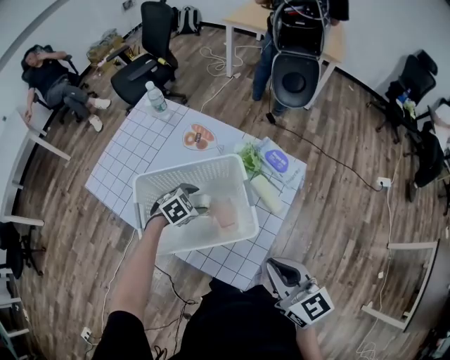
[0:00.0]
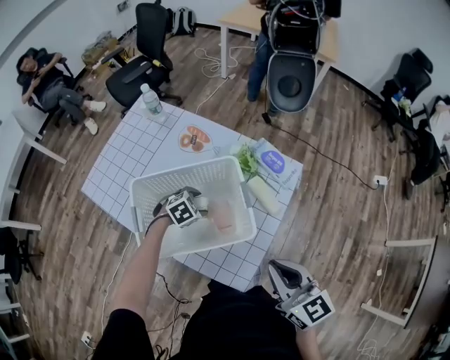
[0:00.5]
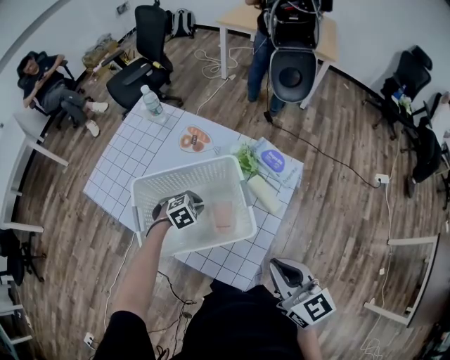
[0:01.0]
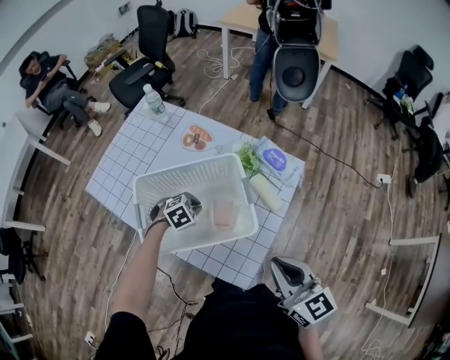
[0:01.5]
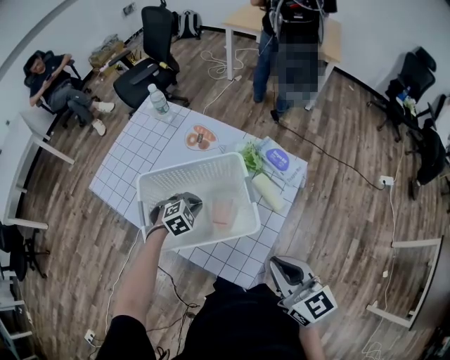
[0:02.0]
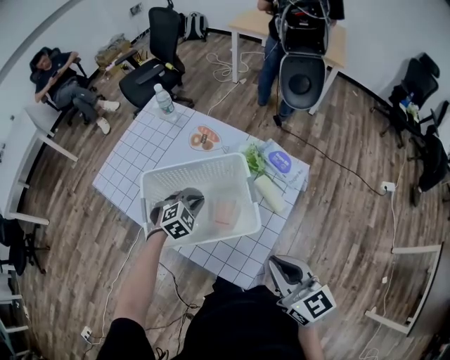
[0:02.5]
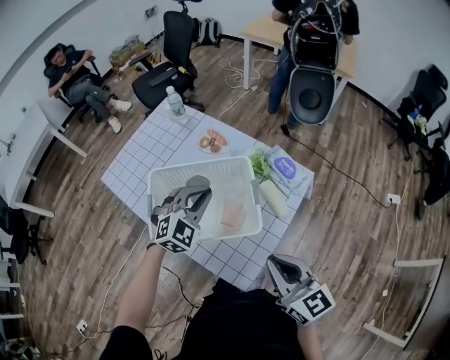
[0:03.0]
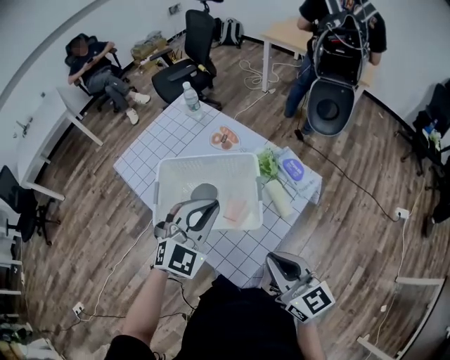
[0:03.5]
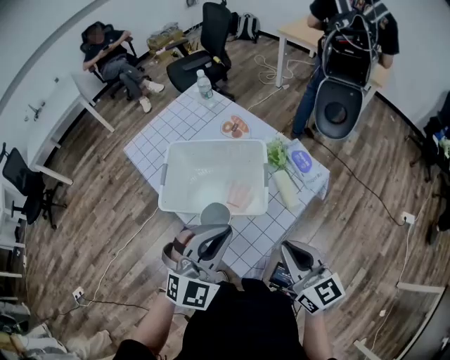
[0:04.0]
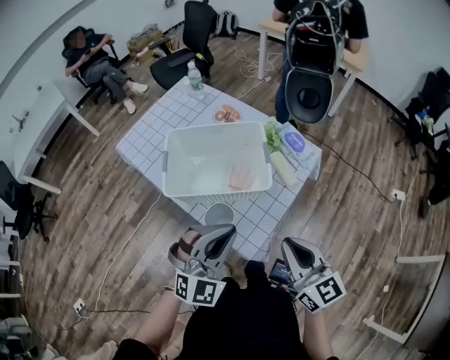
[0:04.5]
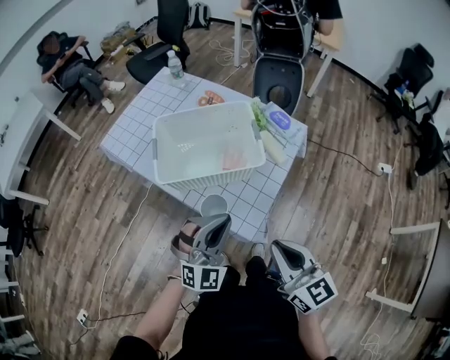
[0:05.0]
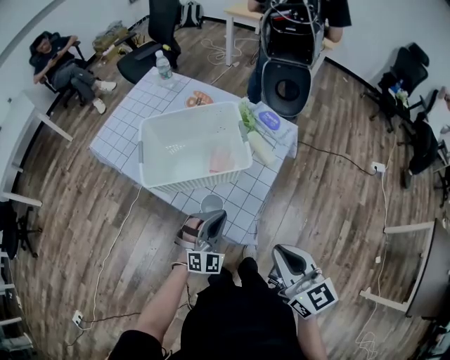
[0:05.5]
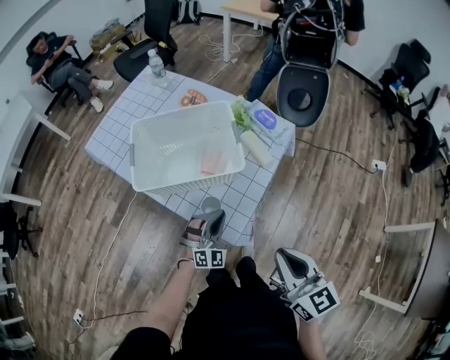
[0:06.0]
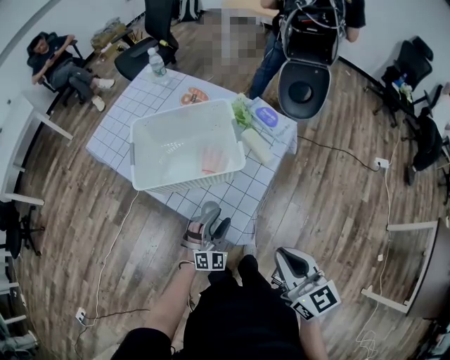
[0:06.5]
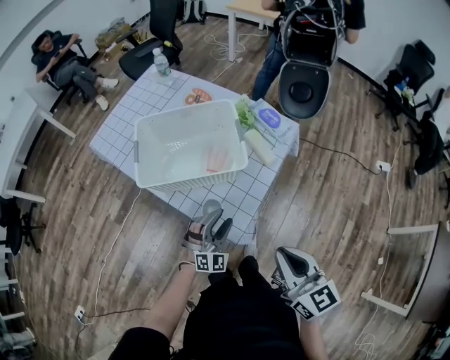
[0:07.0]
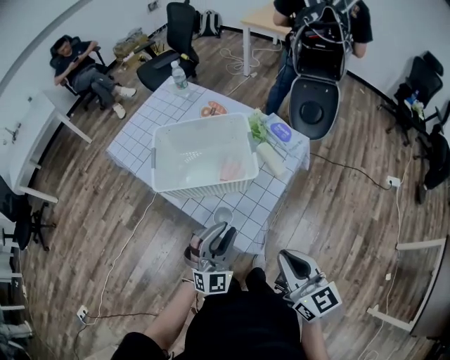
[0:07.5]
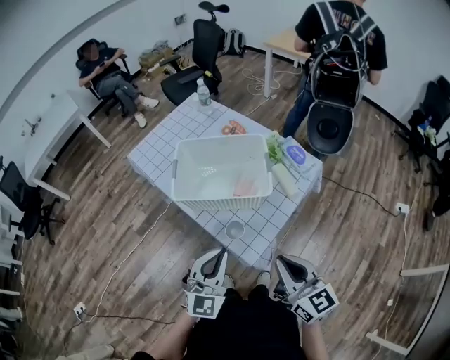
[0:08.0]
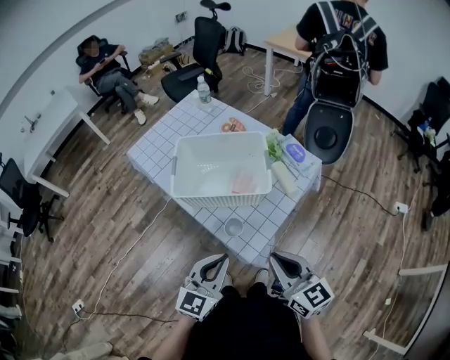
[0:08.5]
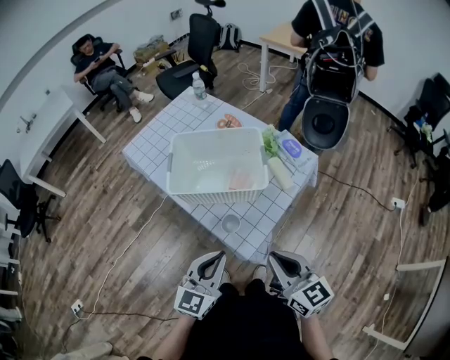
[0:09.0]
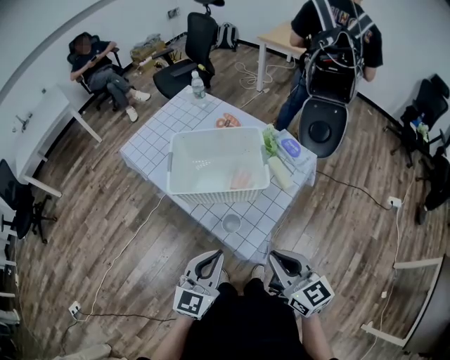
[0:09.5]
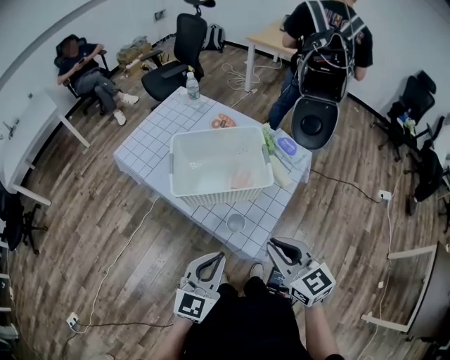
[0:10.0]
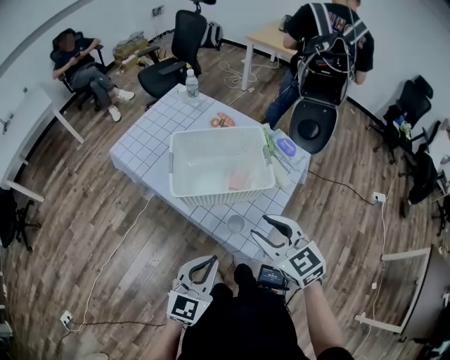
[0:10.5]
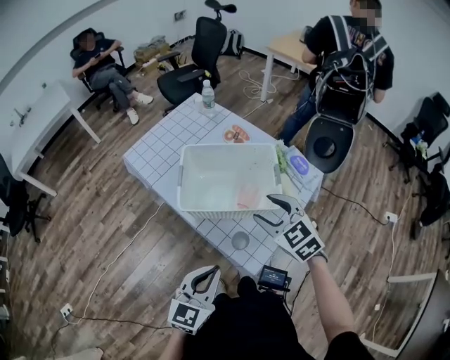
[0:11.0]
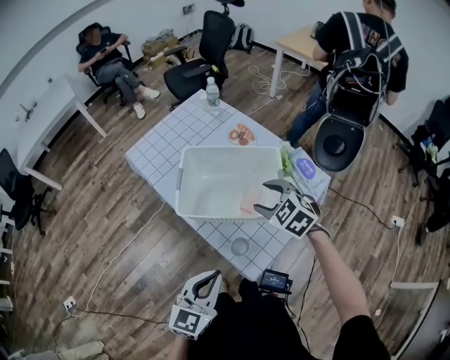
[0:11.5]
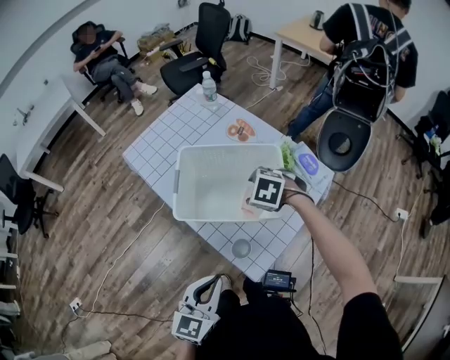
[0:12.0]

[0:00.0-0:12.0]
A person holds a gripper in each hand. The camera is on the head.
0:00.0 to 0:02.0: The left gripper closes its fingers.
0:02.0 to 0:04.0: The left gripper shifts roughly 35 cm upward and backward, and tips its fingers upward by approximately 40 degrees.
0:04.0 to 0:06.0: The left gripper is displaced downward by approximately 25 cm, while the right gripper travels backward by approximately 15 cm.
0:06.0 to 0:08.0: The left gripper goes approximately 20 cm upward, swivels approximately 30 degrees, and opens, then closes once more.
0:08.0 to 0:10.0: The left gripper changes place by approximately 5 cm, and swivels approximately 30 degrees, while the right gripper moves to the left, about 5 cm.
0:10.0 to 0:12.0: The left gripper changes place by approximately 5 cm. Meanwhile the right gripper heads forward and downward, covering roughly 30 cm, angles its fingers downward, by roughly 50 degrees, and opens its fingers.

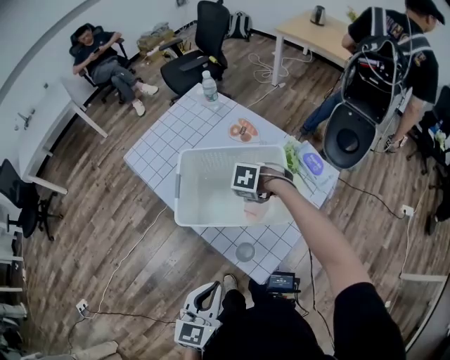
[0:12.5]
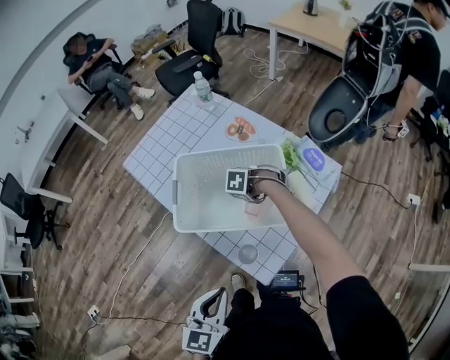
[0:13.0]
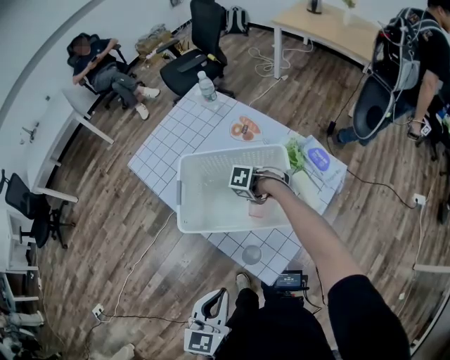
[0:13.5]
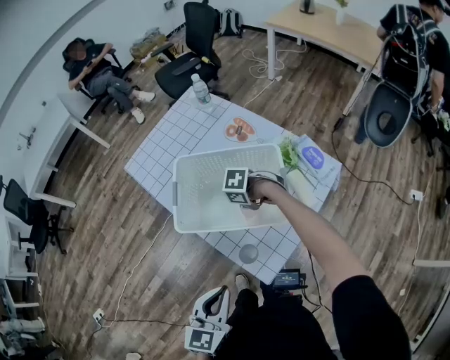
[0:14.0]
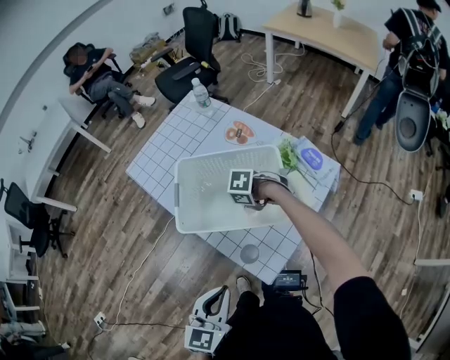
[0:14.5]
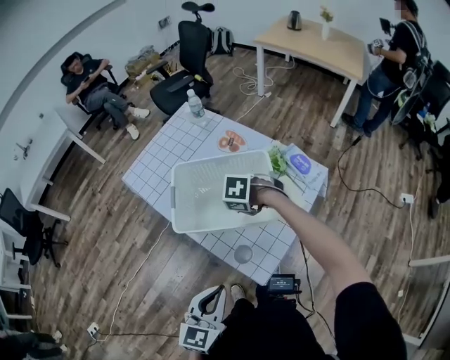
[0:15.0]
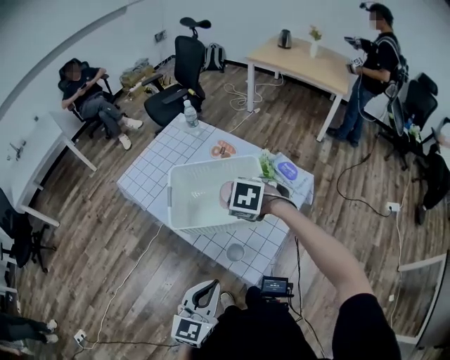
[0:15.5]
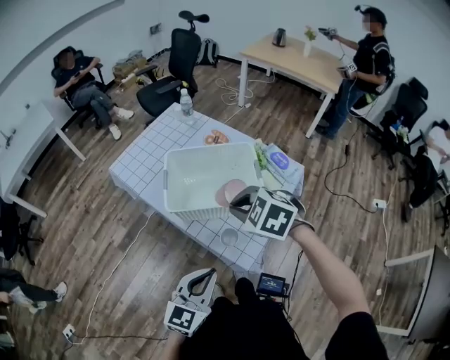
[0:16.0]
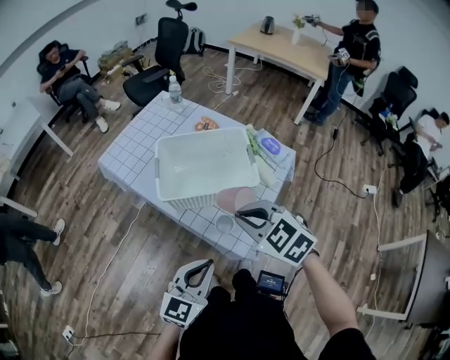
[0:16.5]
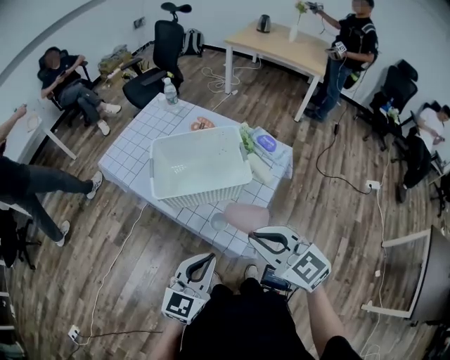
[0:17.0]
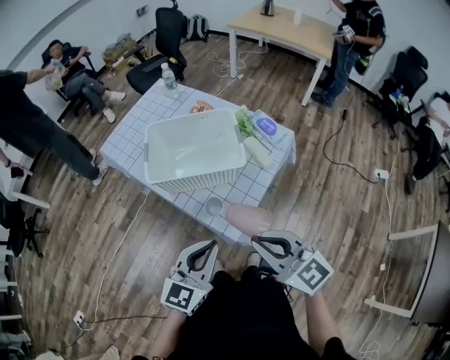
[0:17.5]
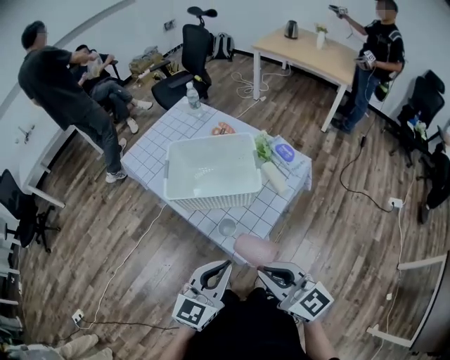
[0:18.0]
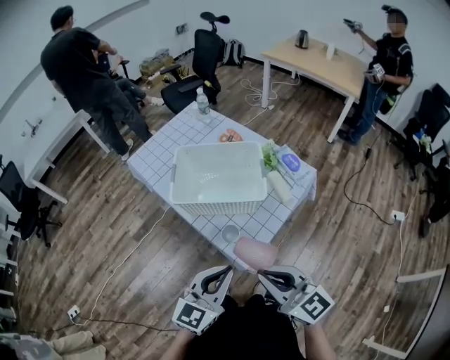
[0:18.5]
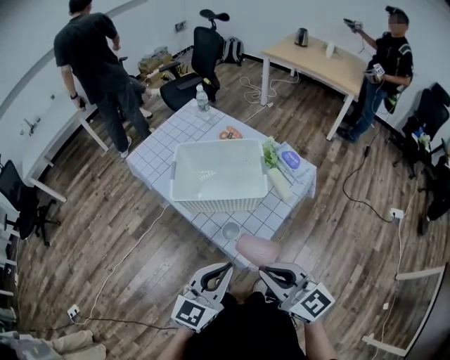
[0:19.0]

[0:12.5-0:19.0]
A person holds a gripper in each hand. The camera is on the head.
0:12.5 to 0:14.5: The right gripper closes up.
0:14.5 to 0:17.0: The left gripper moves roughly 5 cm, and turns by about 20 degrees; the right gripper ends up about 35 cm from where it was, and points its fingers some 50 degrees further upward.
0:17.0 to 0:19.0: The right gripper moves backward, about 5 cm. Meanwhile the left gripper changes place by roughly 5 cm.

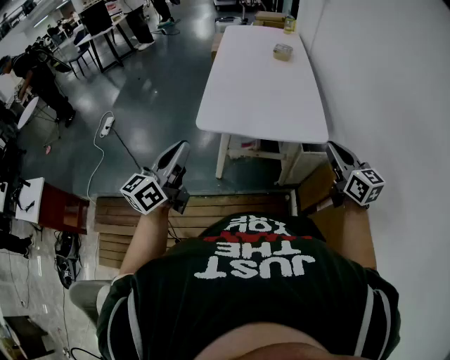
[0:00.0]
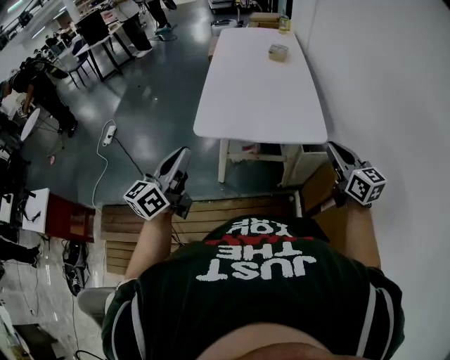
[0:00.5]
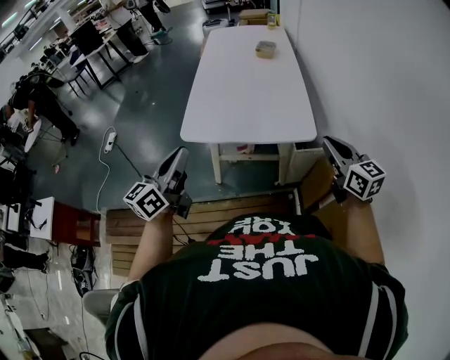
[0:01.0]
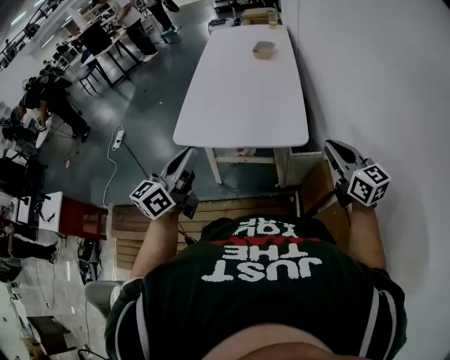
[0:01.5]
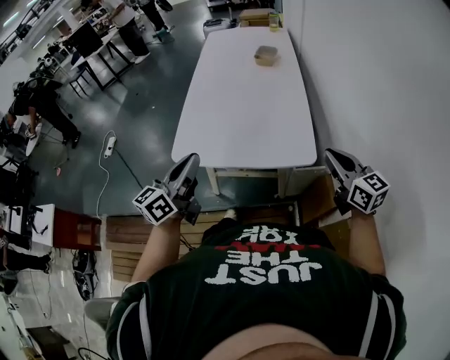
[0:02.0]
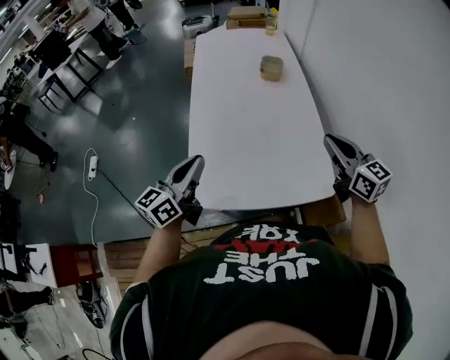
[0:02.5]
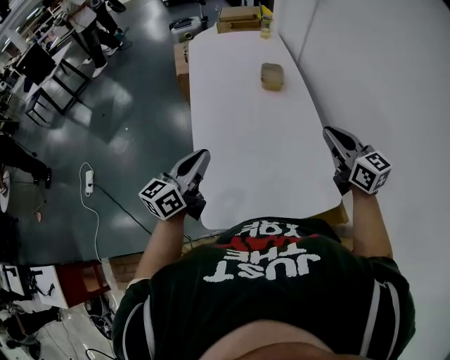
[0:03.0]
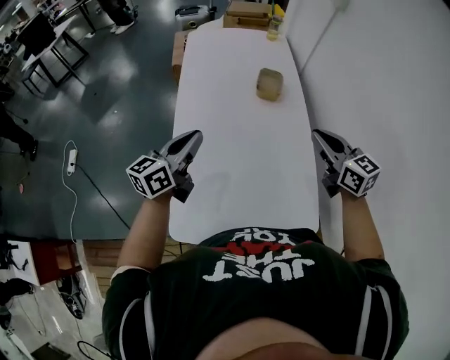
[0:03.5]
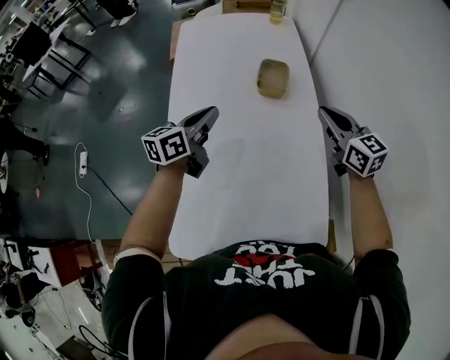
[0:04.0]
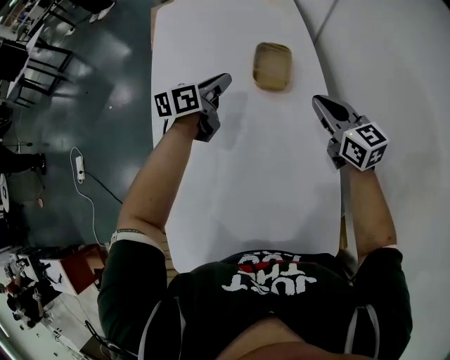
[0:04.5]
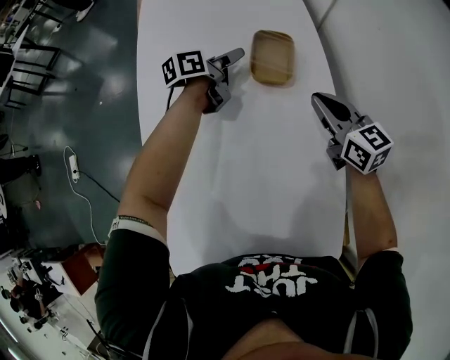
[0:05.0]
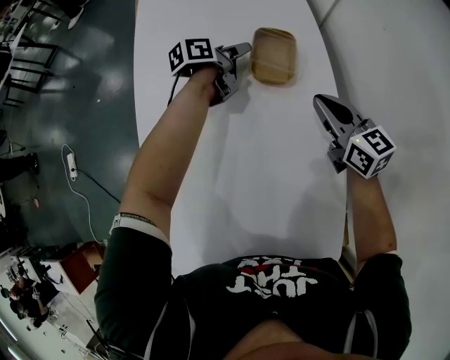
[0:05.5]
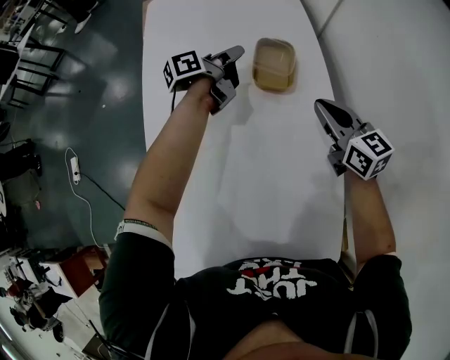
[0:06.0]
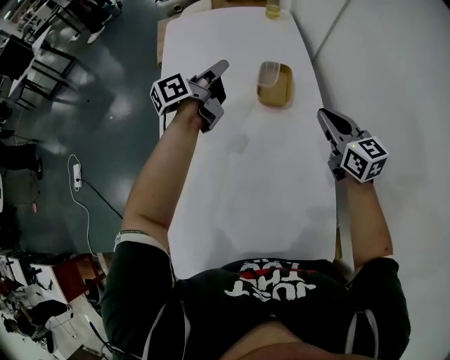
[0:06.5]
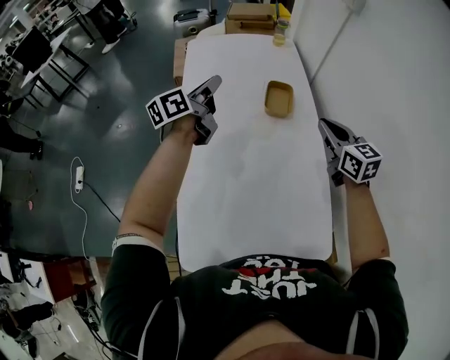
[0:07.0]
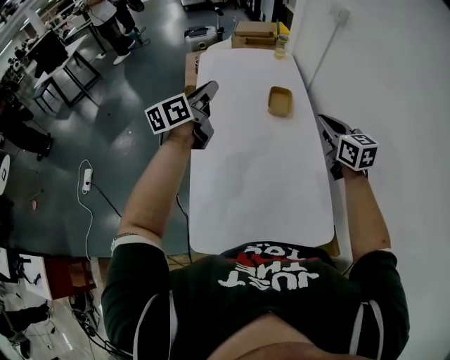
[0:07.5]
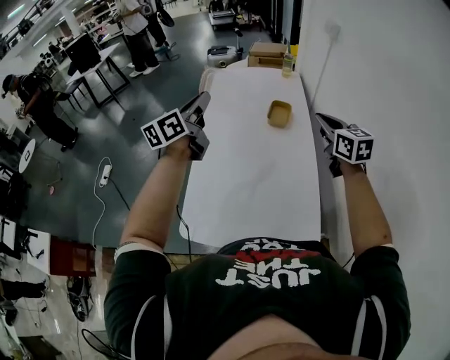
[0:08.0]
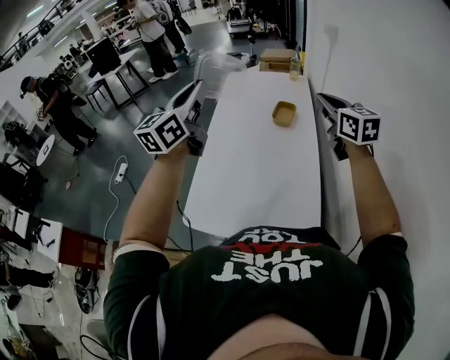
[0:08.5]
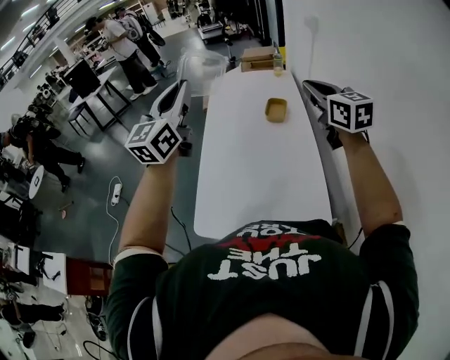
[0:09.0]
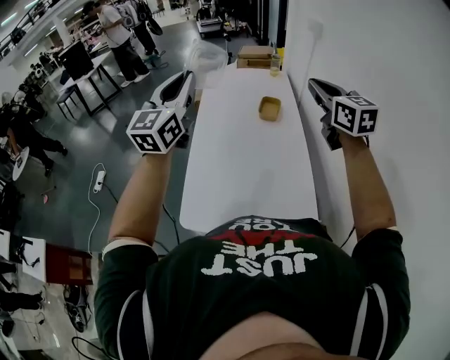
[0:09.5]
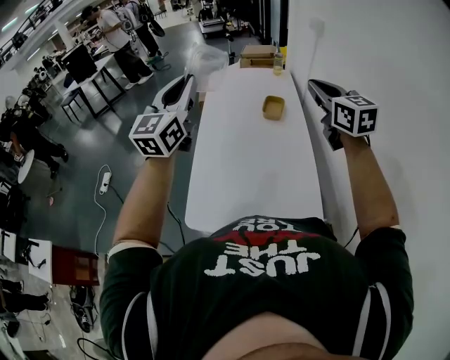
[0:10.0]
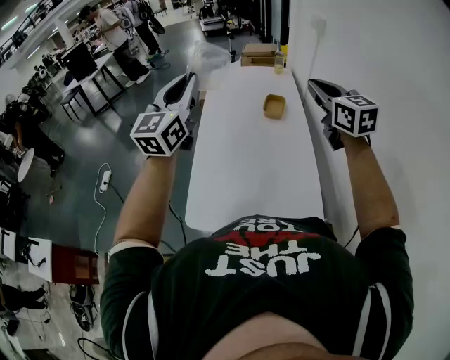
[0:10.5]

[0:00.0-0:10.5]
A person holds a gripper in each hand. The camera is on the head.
0:00.0 to 0:02.0: The left gripper is displaced to the right and forward by about 20 cm, while the right gripper travels forward and to the right by about 15 cm.
0:02.0 to 0:04.0: Both grippers are carried forward, roughly 50 cm. The left gripper changes its angle by about 20 degrees.
0:04.0 to 0:06.5: The left gripper moves forward, approximately 20 cm, changes its angle by roughly 30 degrees, and opens, then closes once more. Meanwhile the right gripper travels forward by some 5 cm.
0:06.5 to 0:08.5: The left gripper moves backward and upward, about 50 cm, and rotates around the line of its fingers by about 60 degrees, clockwise from behind. Meanwhile the right gripper is displaced upward and backward by approximately 35 cm.
0:08.5 to 0:10.5: The right gripper ends up approximately 10 cm from where it was.
